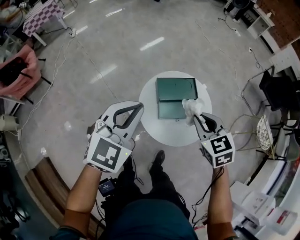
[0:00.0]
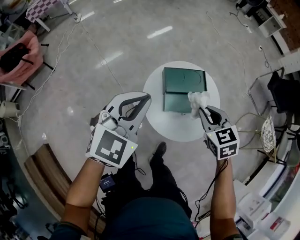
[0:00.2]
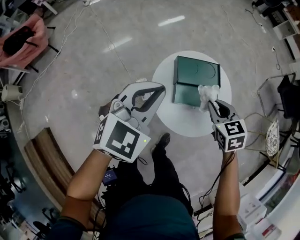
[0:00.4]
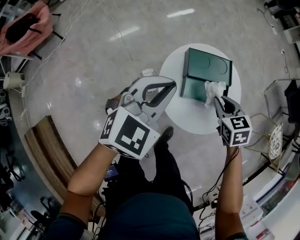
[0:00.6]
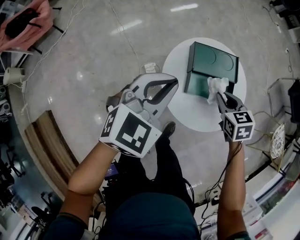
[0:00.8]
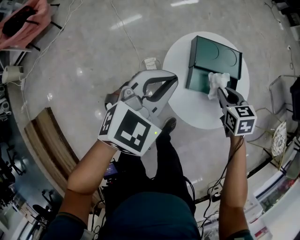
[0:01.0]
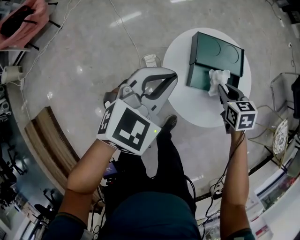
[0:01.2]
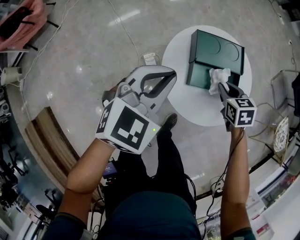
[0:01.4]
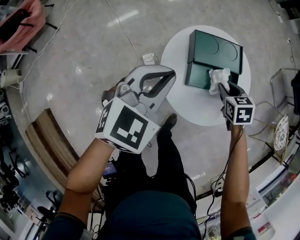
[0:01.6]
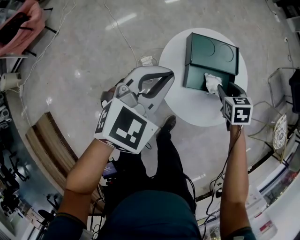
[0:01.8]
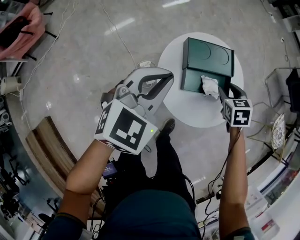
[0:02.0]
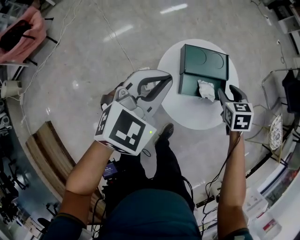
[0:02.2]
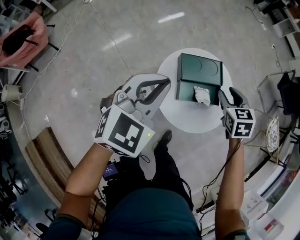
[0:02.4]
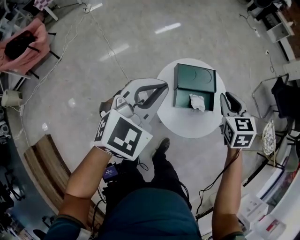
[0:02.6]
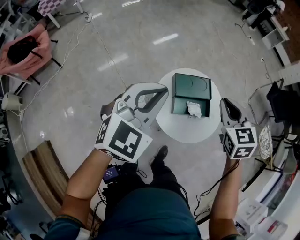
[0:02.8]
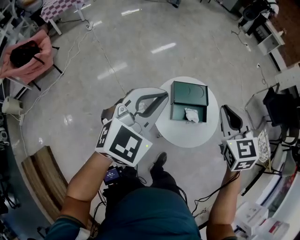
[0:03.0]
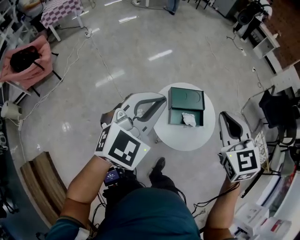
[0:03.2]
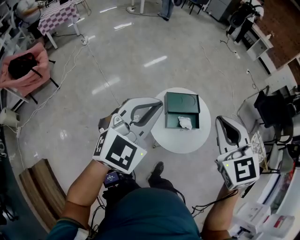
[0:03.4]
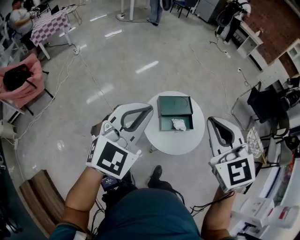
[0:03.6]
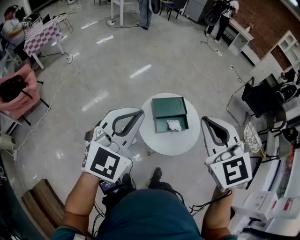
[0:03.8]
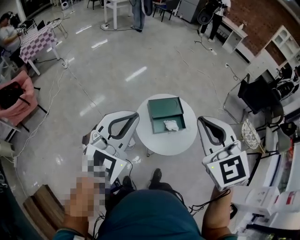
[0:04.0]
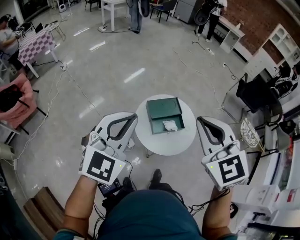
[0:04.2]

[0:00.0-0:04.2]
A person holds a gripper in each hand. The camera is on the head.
0:00.0 to 0:01.4: Both grippers travel together downward, about 30 cm.
0:01.4 to 0:02.8: Both grippers travel together upward, approximately 35 cm. The right gripper changes its angle by some 30 degrees, and opens, then closes again.
0:02.8 to 0:04.2: The left gripper heads upward and backward, covering roughly 25 cm. The right gripper travels upward and backward by roughly 35 cm.

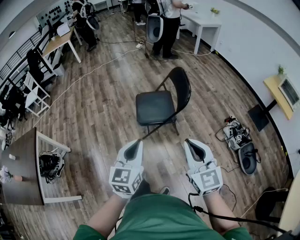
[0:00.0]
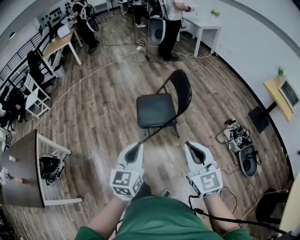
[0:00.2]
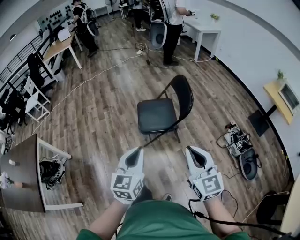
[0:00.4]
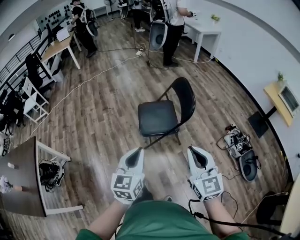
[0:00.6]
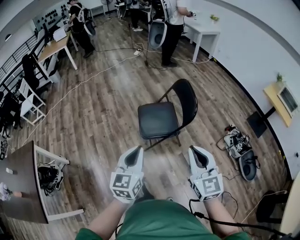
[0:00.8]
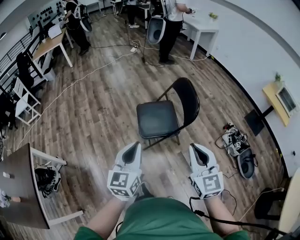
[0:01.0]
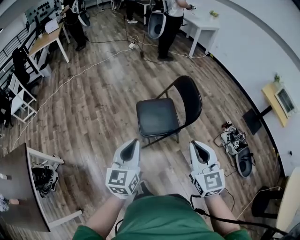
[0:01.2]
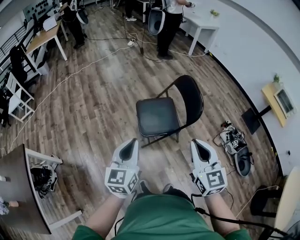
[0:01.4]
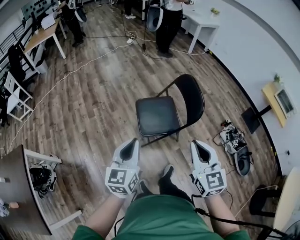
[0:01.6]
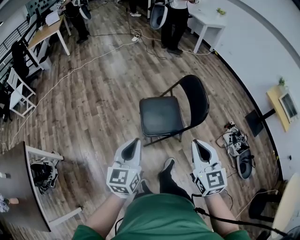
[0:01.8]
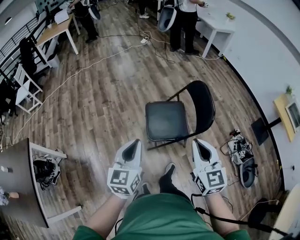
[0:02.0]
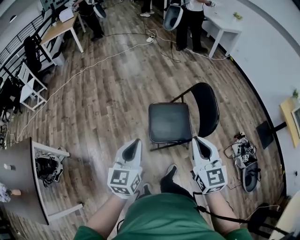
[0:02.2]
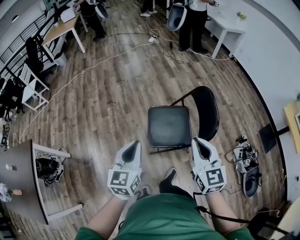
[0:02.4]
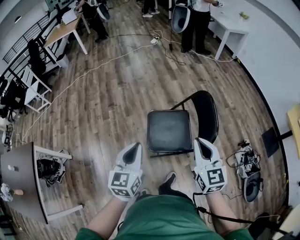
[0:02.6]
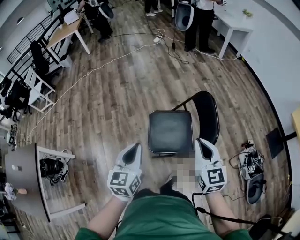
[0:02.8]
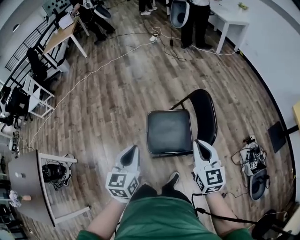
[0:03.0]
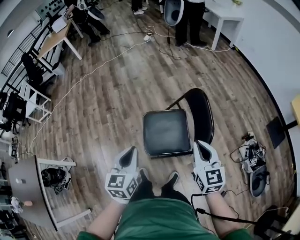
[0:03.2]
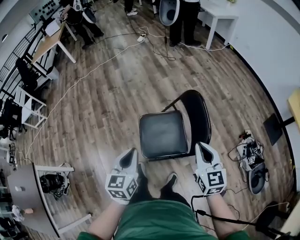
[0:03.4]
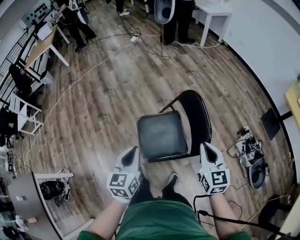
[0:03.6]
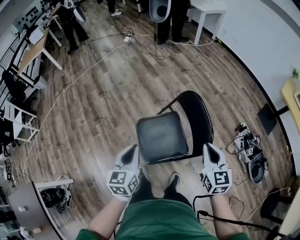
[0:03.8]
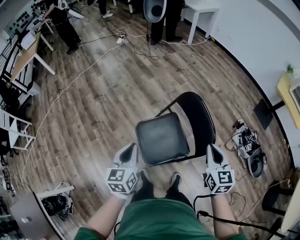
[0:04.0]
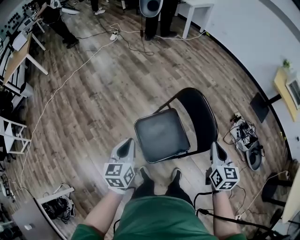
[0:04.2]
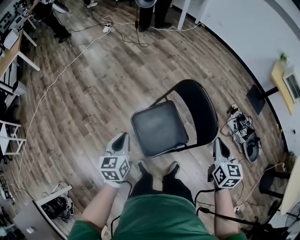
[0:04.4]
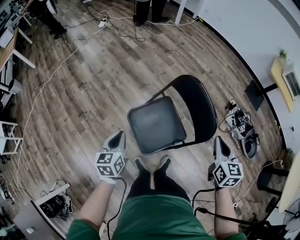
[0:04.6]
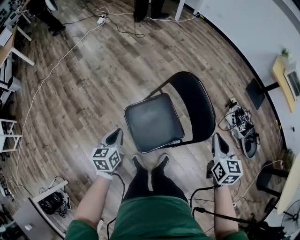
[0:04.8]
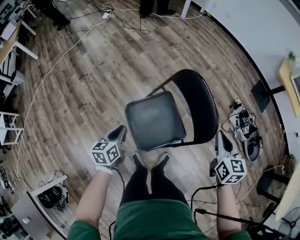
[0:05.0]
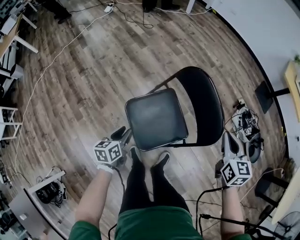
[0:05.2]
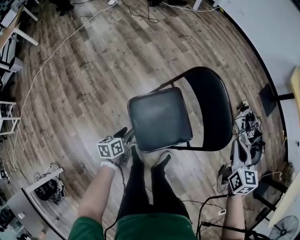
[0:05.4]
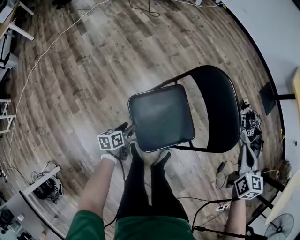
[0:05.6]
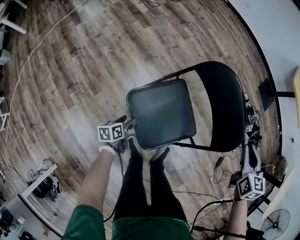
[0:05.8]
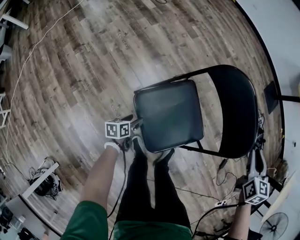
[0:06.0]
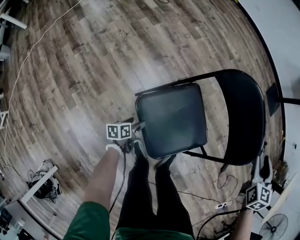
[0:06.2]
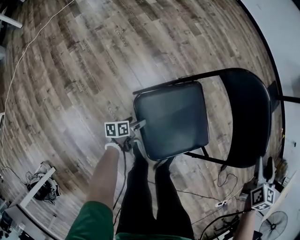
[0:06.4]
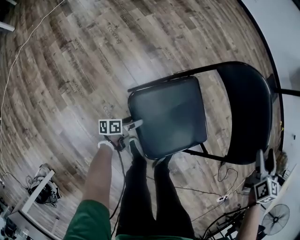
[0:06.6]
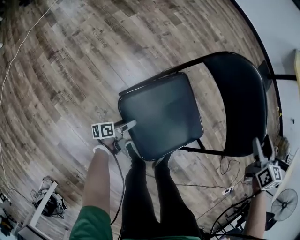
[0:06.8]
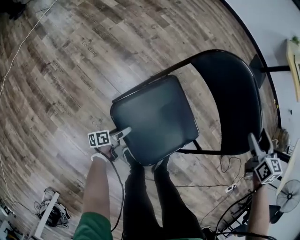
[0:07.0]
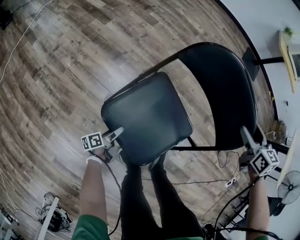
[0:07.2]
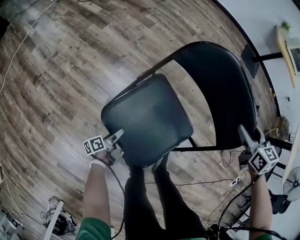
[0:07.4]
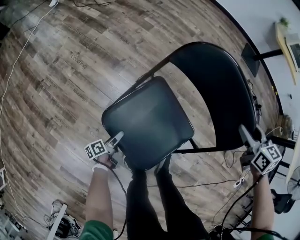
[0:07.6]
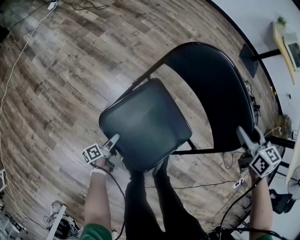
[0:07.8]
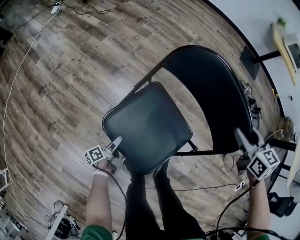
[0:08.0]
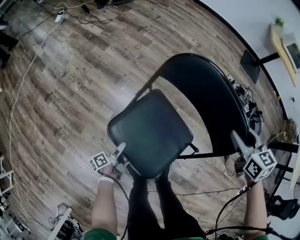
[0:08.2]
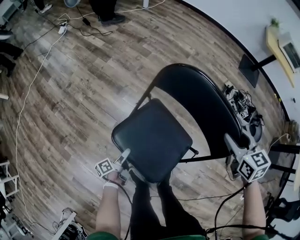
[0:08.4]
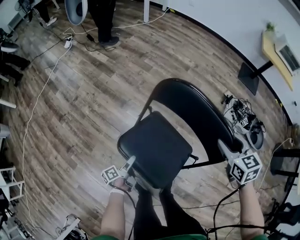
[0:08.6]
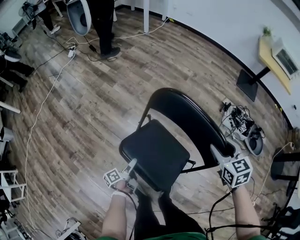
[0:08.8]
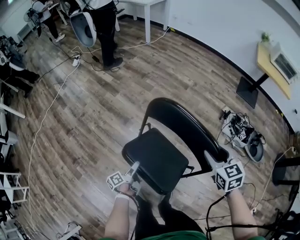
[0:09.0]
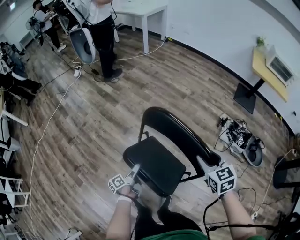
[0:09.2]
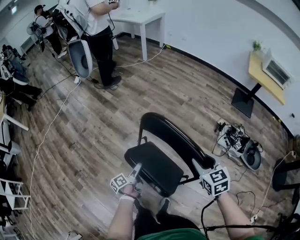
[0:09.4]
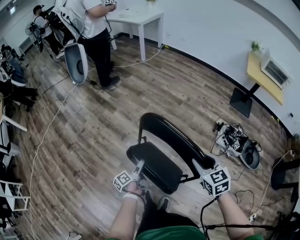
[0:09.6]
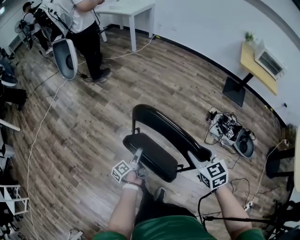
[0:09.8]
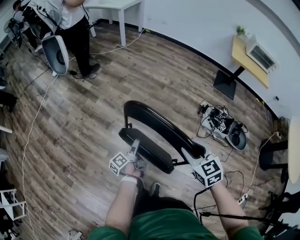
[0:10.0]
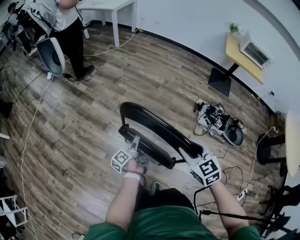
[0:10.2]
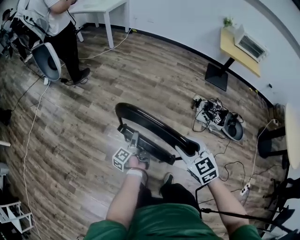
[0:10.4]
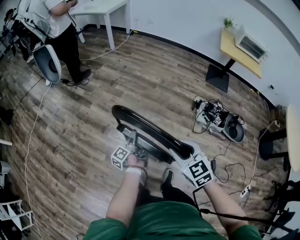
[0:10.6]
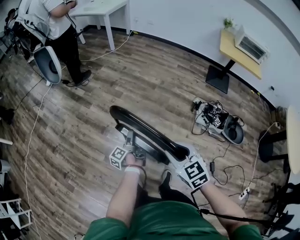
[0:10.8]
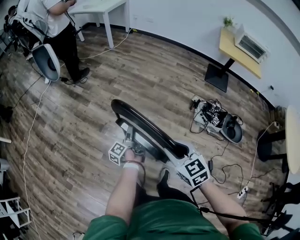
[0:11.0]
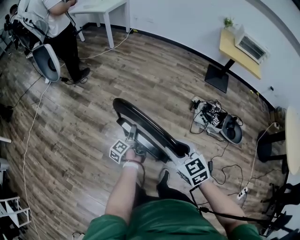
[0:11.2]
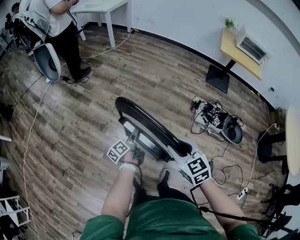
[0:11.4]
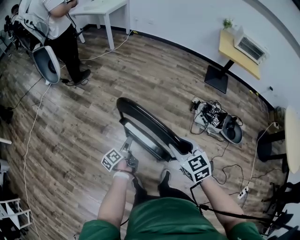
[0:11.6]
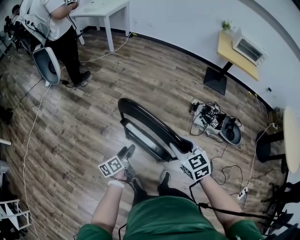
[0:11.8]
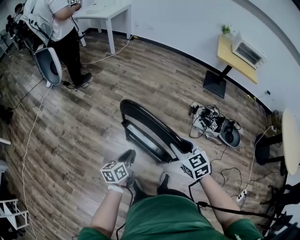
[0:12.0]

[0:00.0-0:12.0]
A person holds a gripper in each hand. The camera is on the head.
0:00.0 to 0:01.6: Both grippers travel together forward and to the left, some 25 cm.
0:01.6 to 0:03.0: Both grippers move forward and to the right, roughly 25 cm.
0:03.0 to 0:04.4: The right gripper shifts by some 10 cm, and changes its angle by approximately 40 degrees. The left gripper moves approximately 25 cm, and changes its angle by roughly 20 degrees.
0:04.4 to 0:06.0: The right gripper is displaced downward and forward by roughly 15 cm; the left gripper goes about 40 cm downward, swivels some 40 degrees, and opens.
0:06.0 to 0:07.6: The two grippers go roughly 10 cm downward. The right gripper opens and closes again. The left gripper turns by about 30 degrees.
0:07.6 to 0:09.0: The left gripper shifts about 30 cm upward and to the right; the right gripper moves upward, approximately 15 cm.
0:09.0 to 0:10.4: The right gripper moves upward, roughly 5 cm; the left gripper is displaced forward, to the right and upward by some 25 cm.
0:10.4 to 0:12.0: The left gripper is displaced upward and backward by some 10 cm, rolls clockwise, seen from behind, by approximately 50 degrees, and closes.

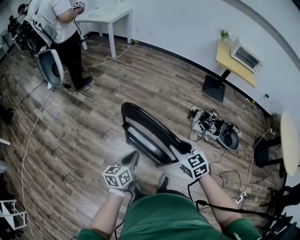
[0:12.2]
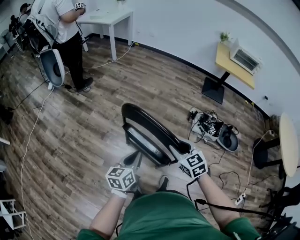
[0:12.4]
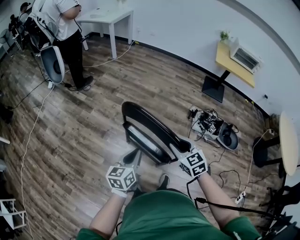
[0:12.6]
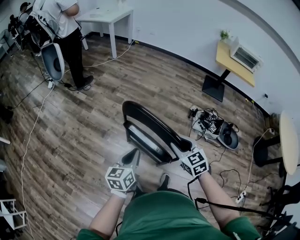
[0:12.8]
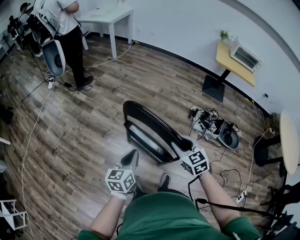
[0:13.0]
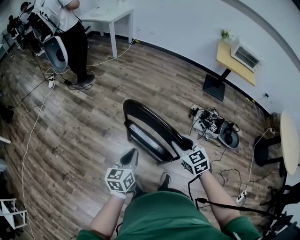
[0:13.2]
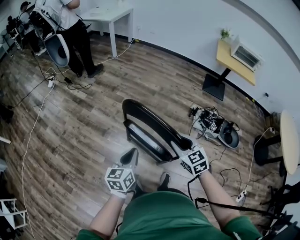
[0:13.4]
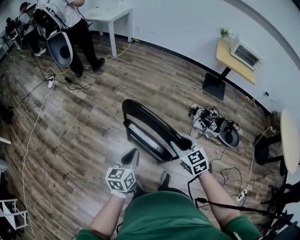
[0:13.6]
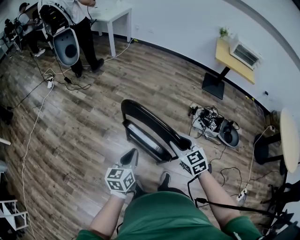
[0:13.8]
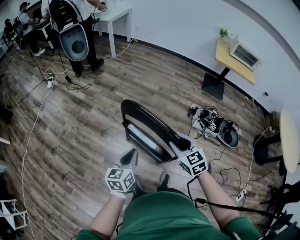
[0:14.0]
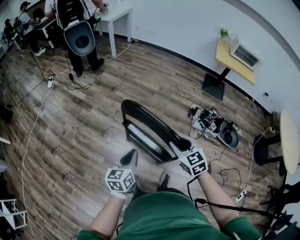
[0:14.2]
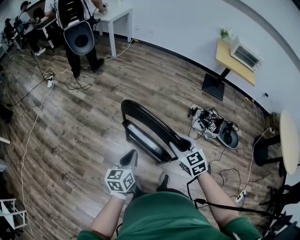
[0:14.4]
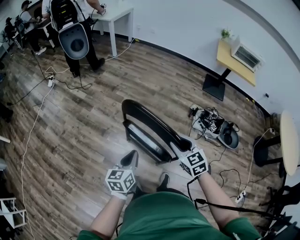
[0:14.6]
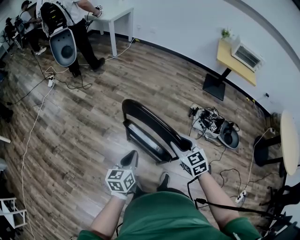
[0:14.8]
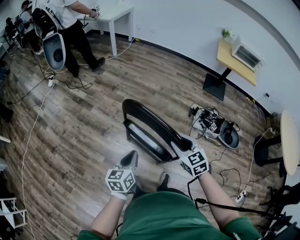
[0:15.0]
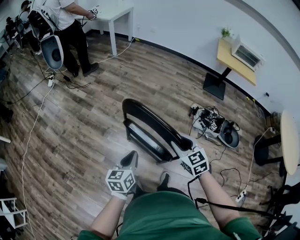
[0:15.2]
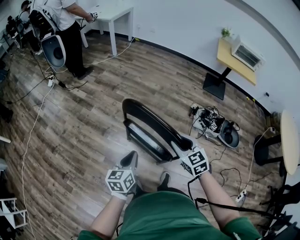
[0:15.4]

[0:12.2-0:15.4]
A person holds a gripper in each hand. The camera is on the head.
0:12.2 to 0:15.4: The grippers stay close to where they were, moving slightly.

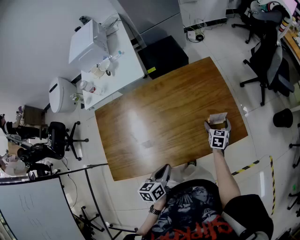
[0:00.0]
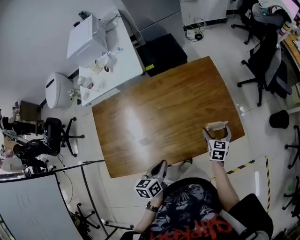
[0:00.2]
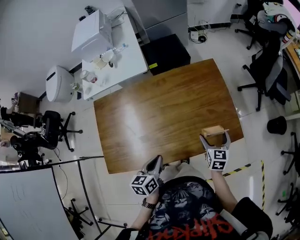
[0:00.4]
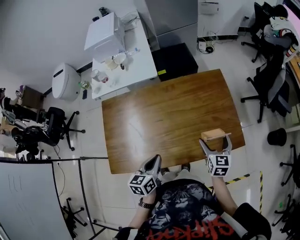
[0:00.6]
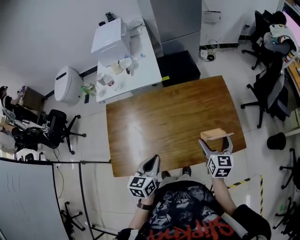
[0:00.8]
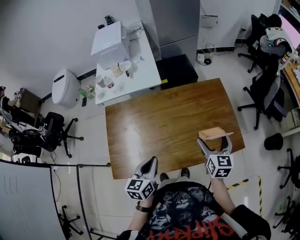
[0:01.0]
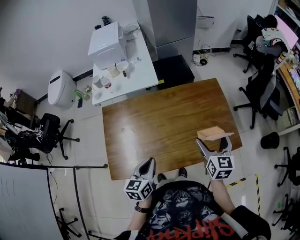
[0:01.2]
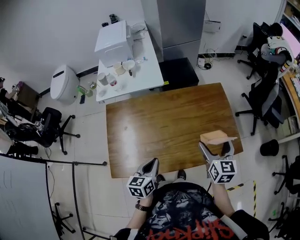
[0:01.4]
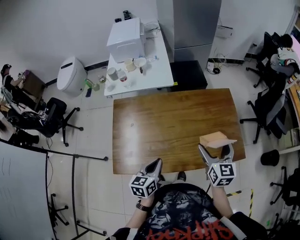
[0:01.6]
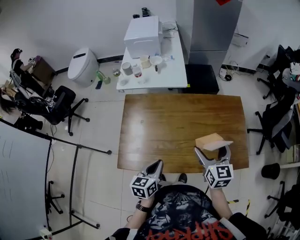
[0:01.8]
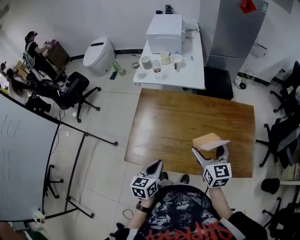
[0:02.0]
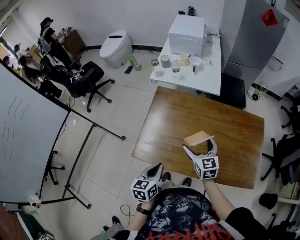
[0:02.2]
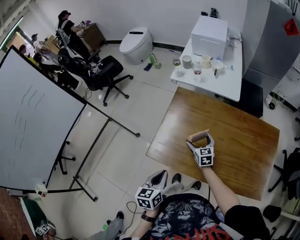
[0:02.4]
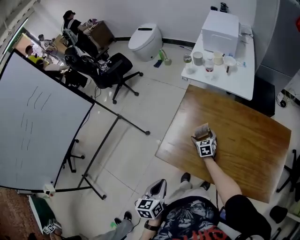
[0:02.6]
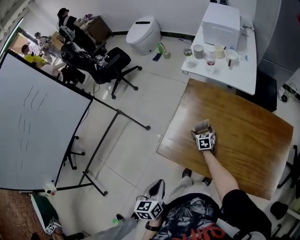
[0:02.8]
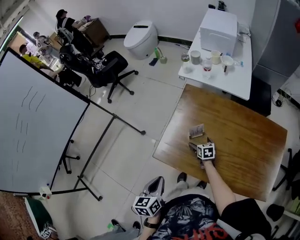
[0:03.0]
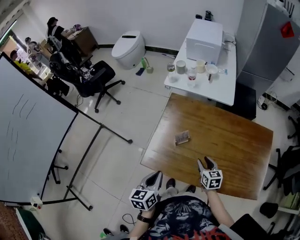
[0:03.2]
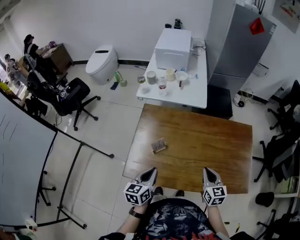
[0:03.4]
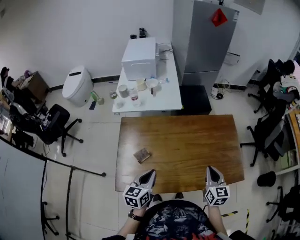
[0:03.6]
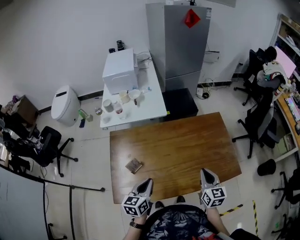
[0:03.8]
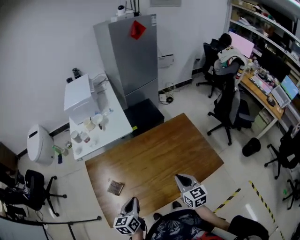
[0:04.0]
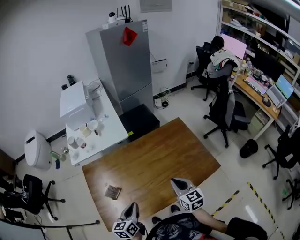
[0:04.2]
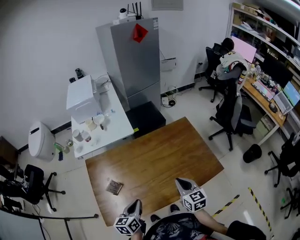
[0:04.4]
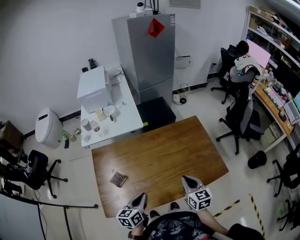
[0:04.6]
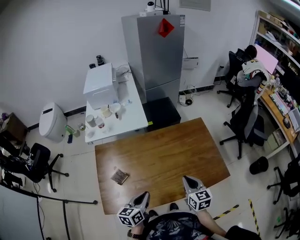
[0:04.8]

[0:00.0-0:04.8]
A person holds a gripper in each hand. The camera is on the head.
0:00.0 to 0:01.6: The left gripper travels to the left and upward by approximately 20 cm. Meanwhile the right gripper is displaced upward and to the left by roughly 40 cm, and changes its angle by about 30 degrees.
0:01.6 to 0:03.2: The right gripper rotates some 40 degrees, and closes its fingers, while the left gripper ends up about 20 cm from where it was, and rotates approximately 30 degrees.
0:03.2 to 0:04.8: The left gripper shifts by about 25 cm, and turns by about 40 degrees; the right gripper ends up roughly 30 cm from where it was, and turns by roughly 30 degrees.
